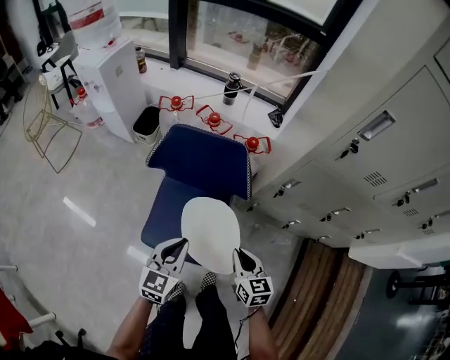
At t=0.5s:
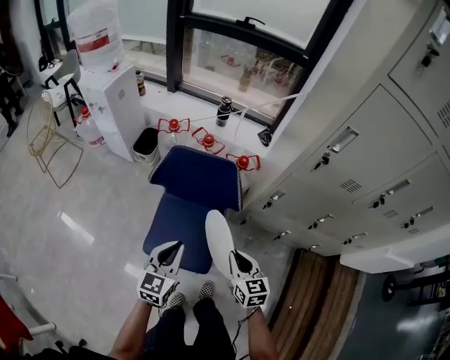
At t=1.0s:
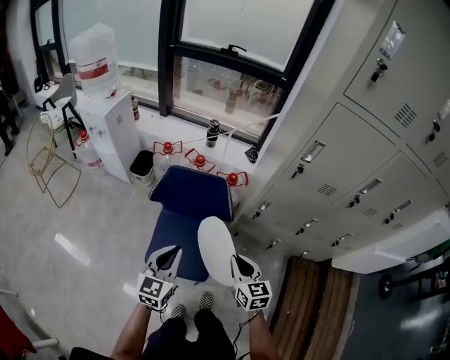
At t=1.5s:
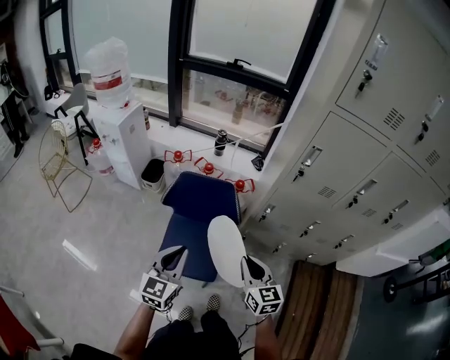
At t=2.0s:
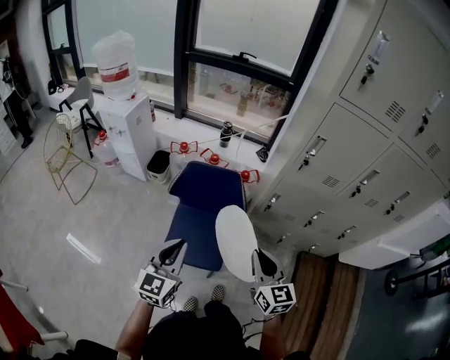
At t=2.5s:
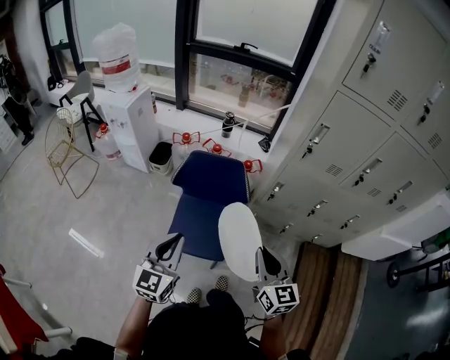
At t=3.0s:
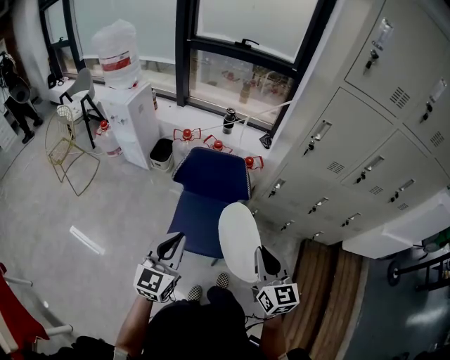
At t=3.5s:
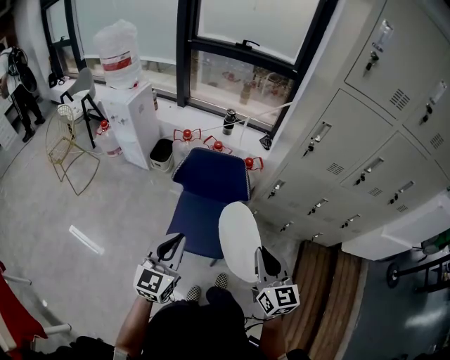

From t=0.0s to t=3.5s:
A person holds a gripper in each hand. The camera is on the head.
From t=0.0s to t=2.0s: The right gripper moves upward, roughly 35 cm, and changes its angle by roughly 20 degrees. The left gripper heads upward and backward, covering roughly 30 cm.
From t=2.0s to t=3.5s: The grippers move only a little.

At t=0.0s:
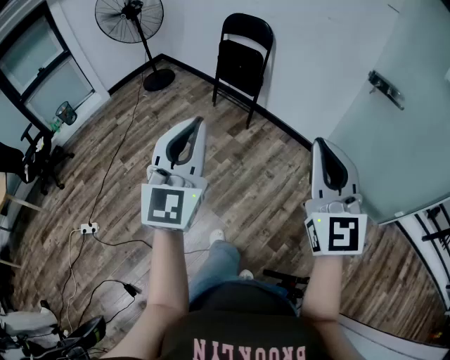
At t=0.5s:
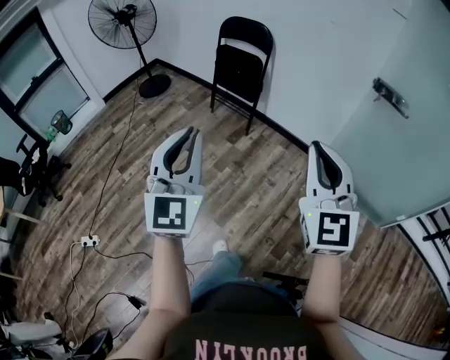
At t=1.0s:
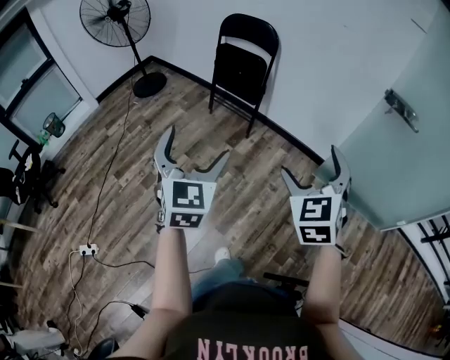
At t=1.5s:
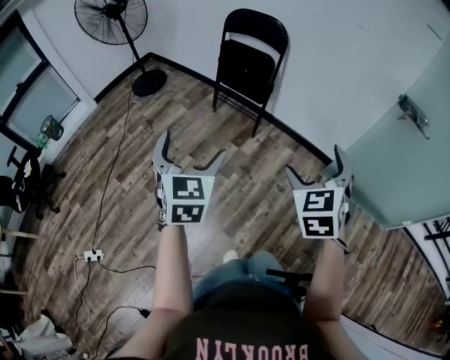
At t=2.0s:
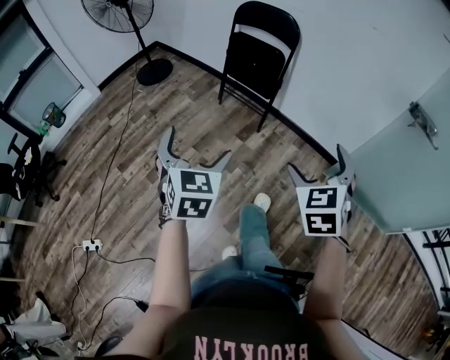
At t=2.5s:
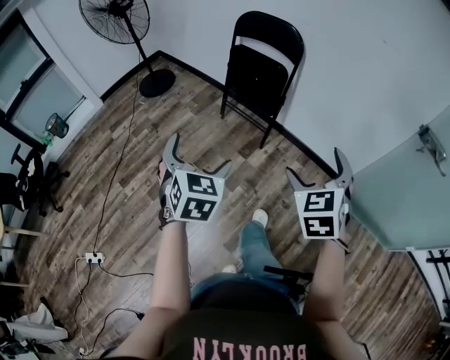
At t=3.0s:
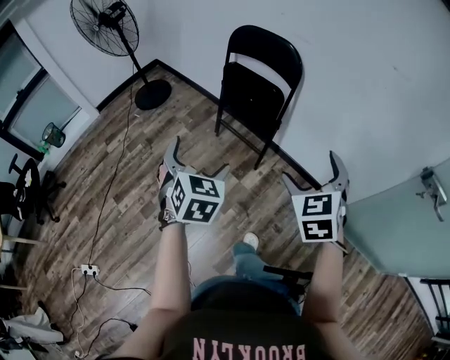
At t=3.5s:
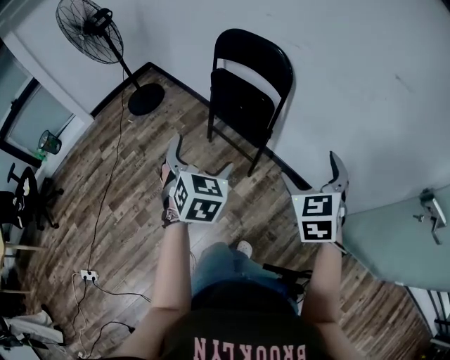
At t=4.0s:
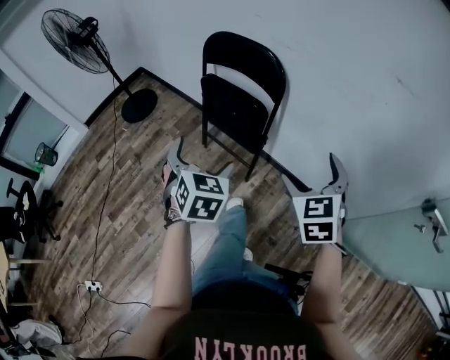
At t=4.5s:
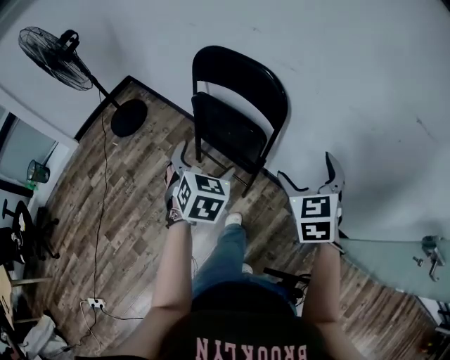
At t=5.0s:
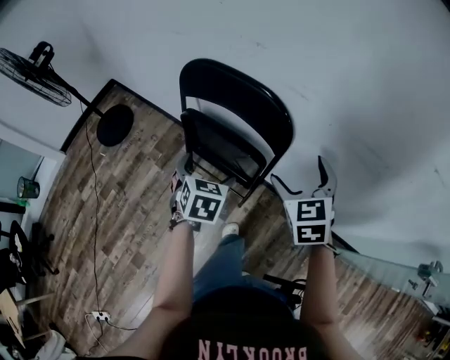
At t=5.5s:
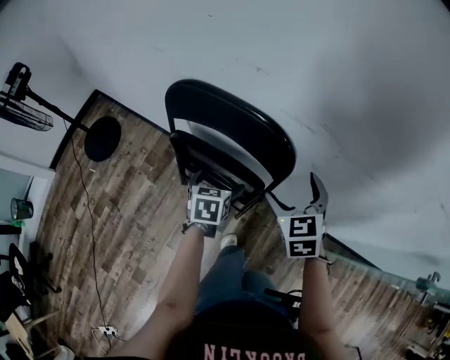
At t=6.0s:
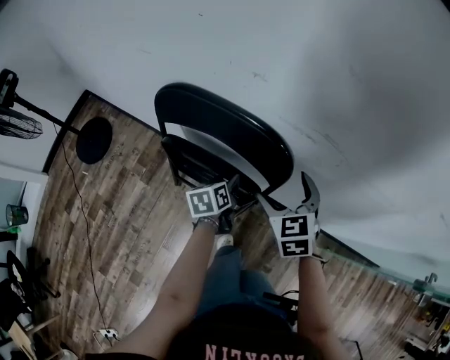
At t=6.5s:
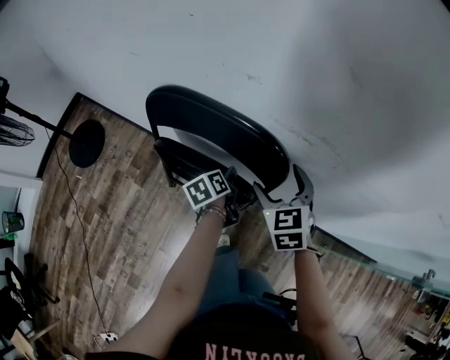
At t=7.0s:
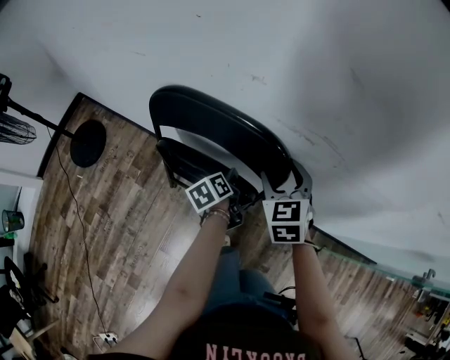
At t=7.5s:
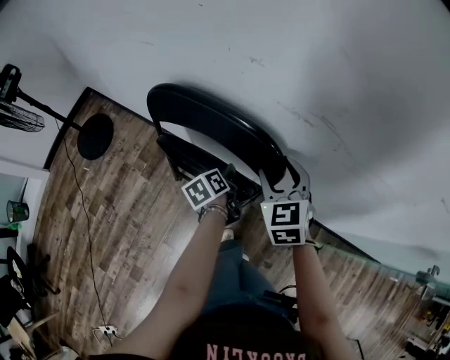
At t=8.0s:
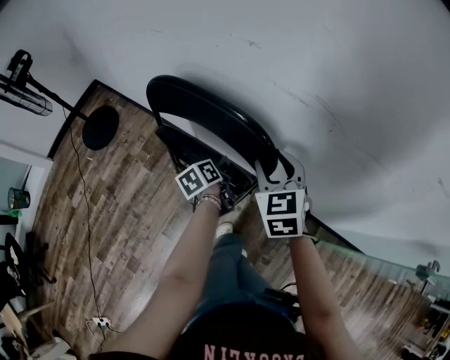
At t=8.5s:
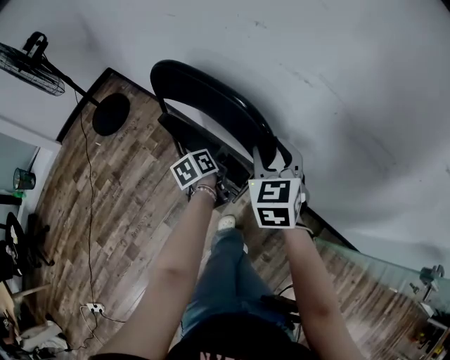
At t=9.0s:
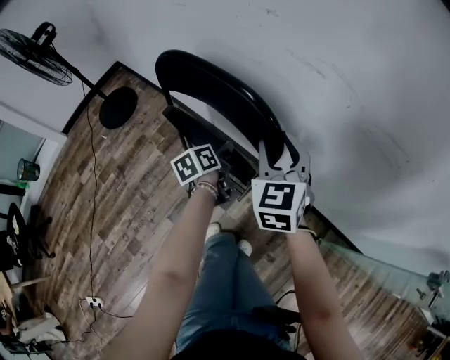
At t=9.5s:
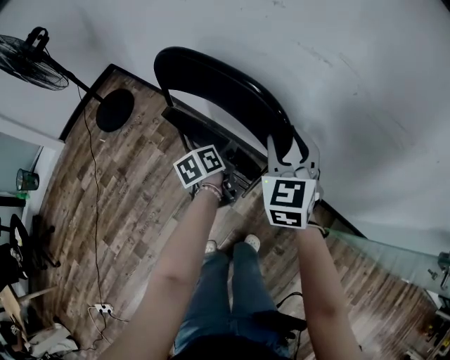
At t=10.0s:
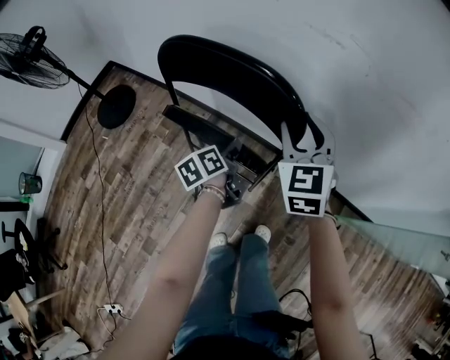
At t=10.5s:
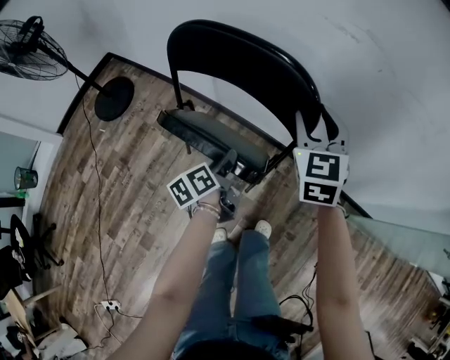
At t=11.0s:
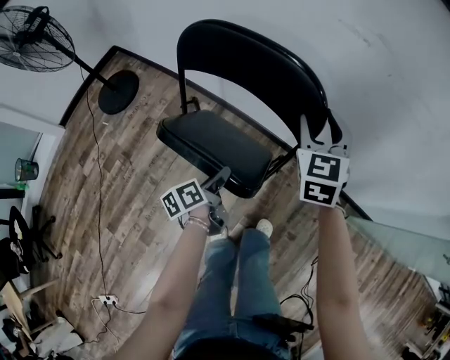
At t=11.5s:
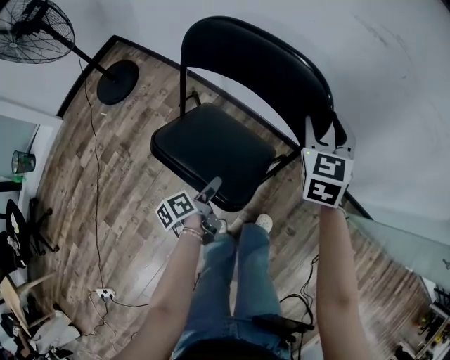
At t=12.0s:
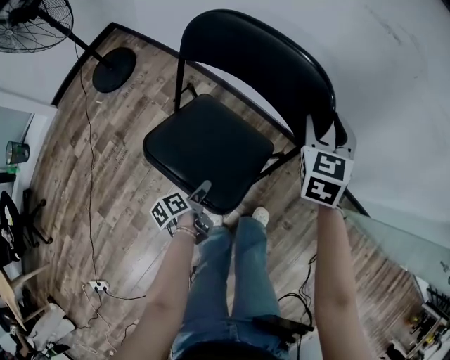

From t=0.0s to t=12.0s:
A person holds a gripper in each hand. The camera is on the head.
From t=0.0s to t=2.0s: The two grippers go about 35 cm forward, downward and to the left. The left gripper angles its fingers downward, by roughly 40 degrees, and opens its fingers. The right gripper tips its fingers downward by approximately 40 degrees, and opens.
From t=2.0s to t=4.0s: The pair of grippers is taken forward, roughly 50 cm.
From t=4.0s to t=6.0s: The right gripper shifts approximately 35 cm forward. The left gripper shifts some 40 cm forward and downward, rolls counterclockwise, seen from behind, by approximately 50 degrees, and closes.
From t=6.0s to t=8.0s: The left gripper shifts by approximately 5 cm, and swivels some 20 degrees. The right gripper shifts by roughly 5 cm, and closes its fingers.
From t=8.0s to t=10.0s: The left gripper goes about 10 cm backward. The right gripper travels backward by some 5 cm.
From t=10.0s to t=12.0s: The right gripper heads downward, covering about 10 cm. Meanwhile the left gripper heads backward and downward, covering some 30 cm, and changes its angle by some 30 degrees.

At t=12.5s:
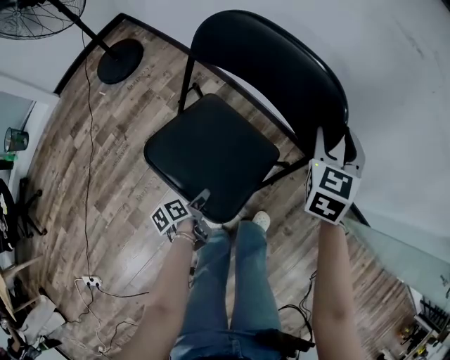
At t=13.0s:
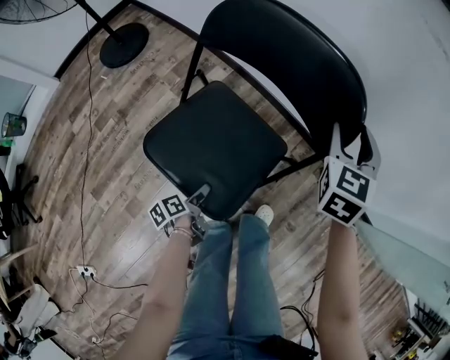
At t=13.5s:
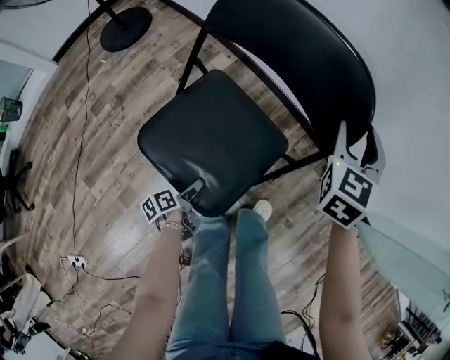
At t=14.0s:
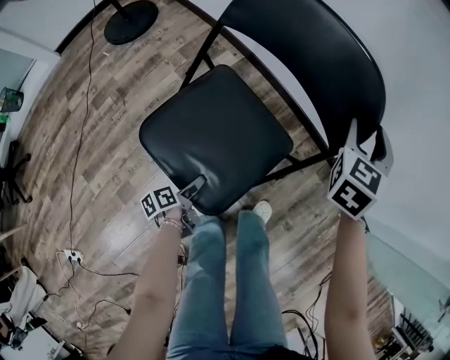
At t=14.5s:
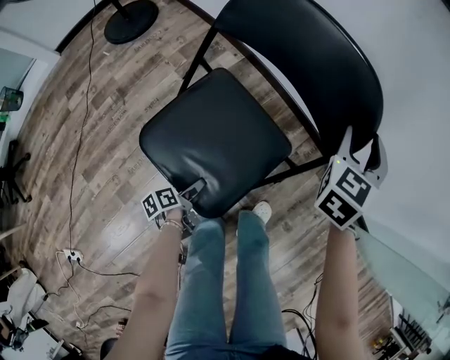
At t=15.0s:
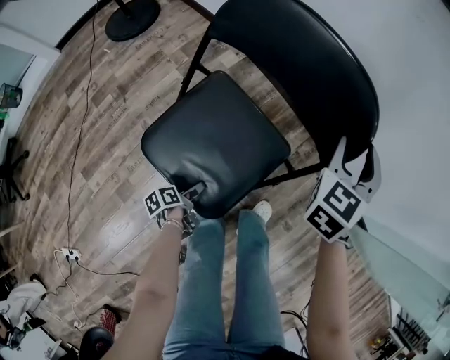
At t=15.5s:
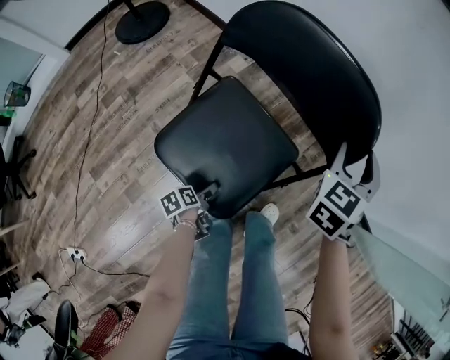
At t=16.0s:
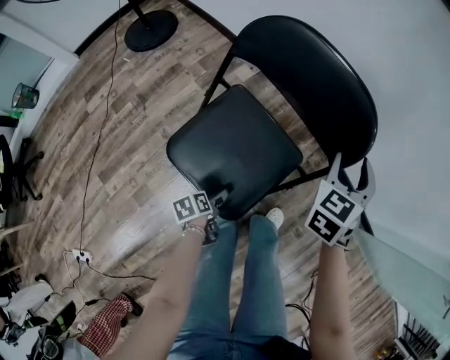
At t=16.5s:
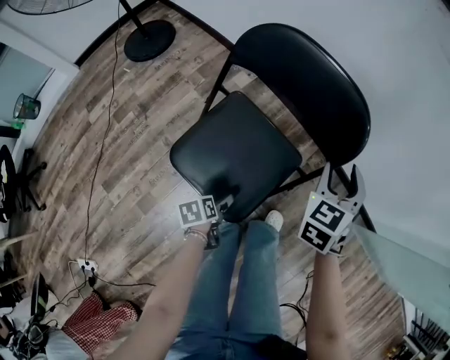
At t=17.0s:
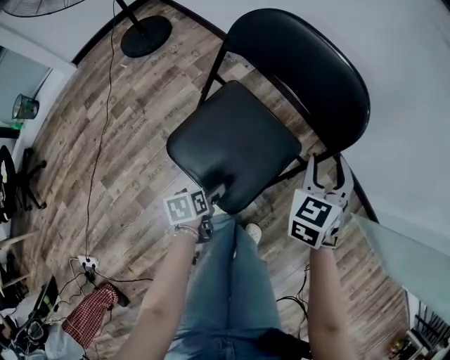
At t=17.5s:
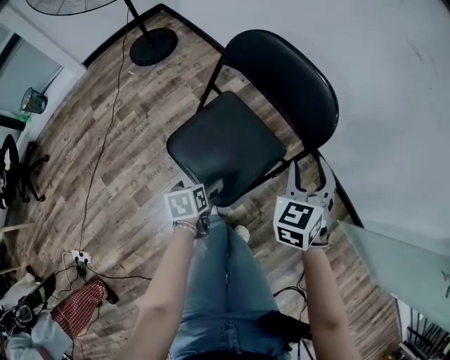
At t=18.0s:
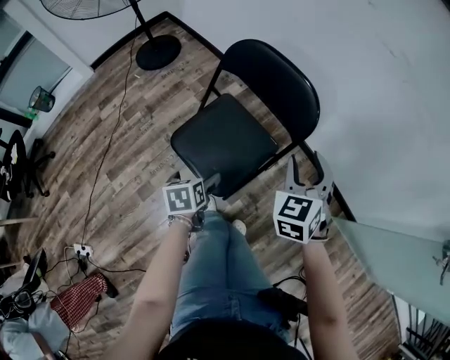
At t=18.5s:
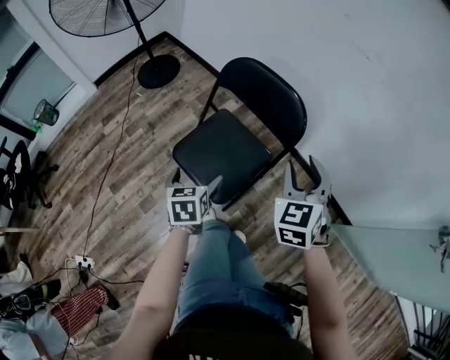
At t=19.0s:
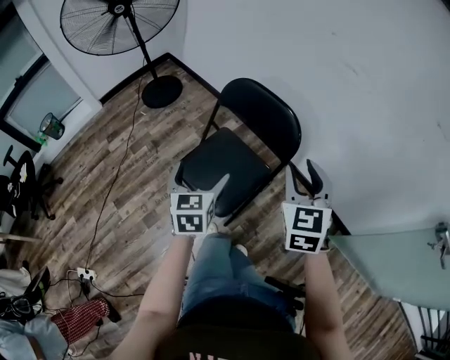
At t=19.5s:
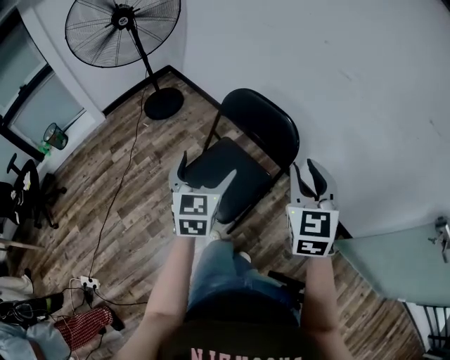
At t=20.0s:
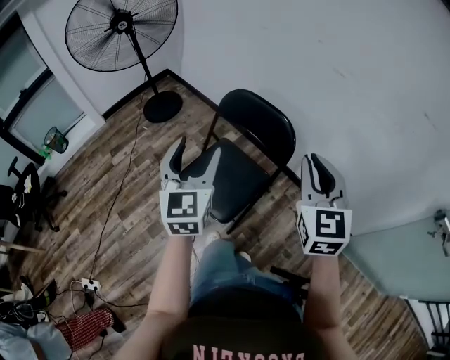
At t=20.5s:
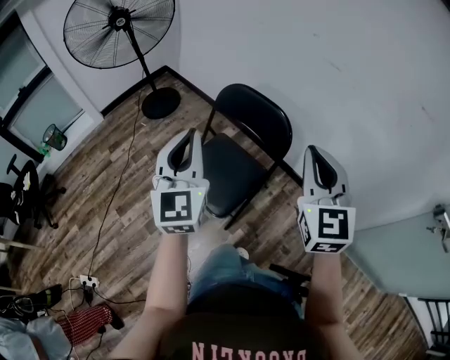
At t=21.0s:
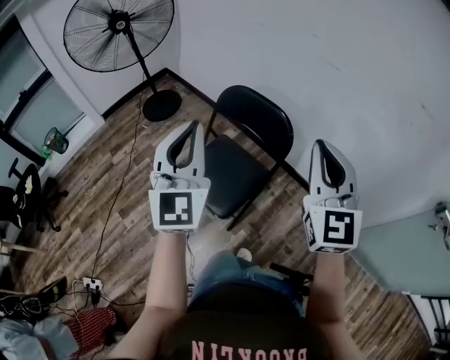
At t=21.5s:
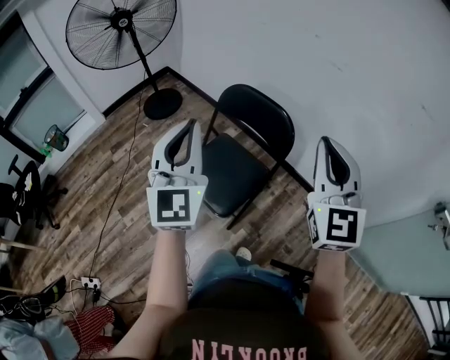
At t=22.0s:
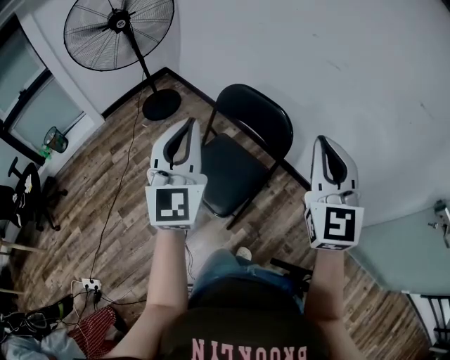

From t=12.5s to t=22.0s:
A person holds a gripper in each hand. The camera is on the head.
From t=12.5s to t=14.5s: The right gripper heads downward, covering about 5 cm, while the left gripper is displaced downward and backward by roughly 15 cm.
From t=14.5s to t=16.5s: The left gripper travels upward by roughly 10 cm, and swivels about 30 degrees. Meanwhile the right gripper heads backward, covering approximately 15 cm.
From t=16.5s to t=18.0s: The left gripper heads upward, covering about 20 cm, and swivels roughly 20 degrees. The right gripper travels upward and backward by approximately 15 cm.
From t=18.0s to t=20.0s: The left gripper shifts approximately 35 cm upward, angles its fingers upward, by some 50 degrees, and closes. Meanwhile the right gripper moves upward and backward, roughly 25 cm, and rotates some 30 degrees.
From t=20.0s to t=22.0s: The two grippers go roughly 5 cm upward. The left gripper closes up.

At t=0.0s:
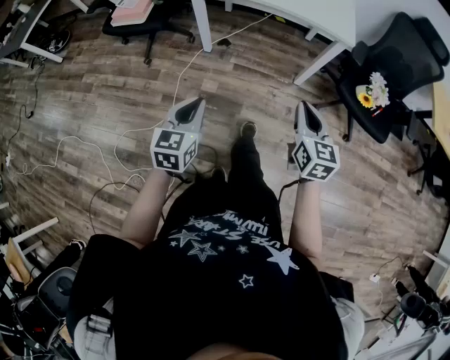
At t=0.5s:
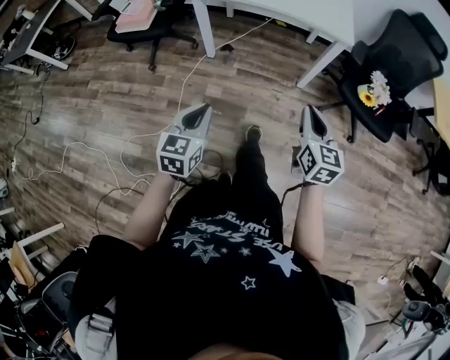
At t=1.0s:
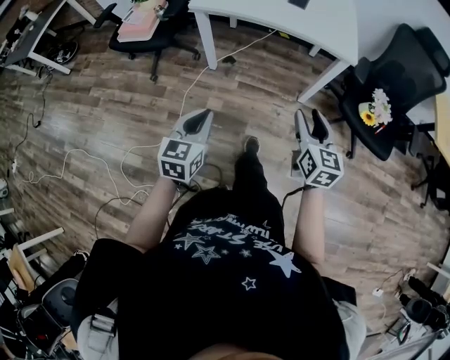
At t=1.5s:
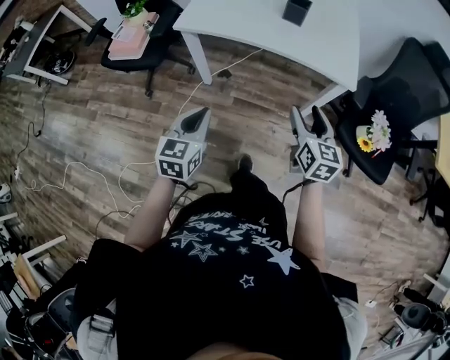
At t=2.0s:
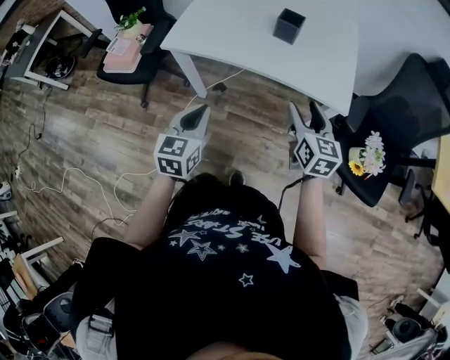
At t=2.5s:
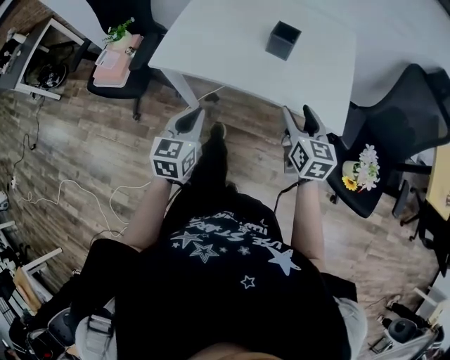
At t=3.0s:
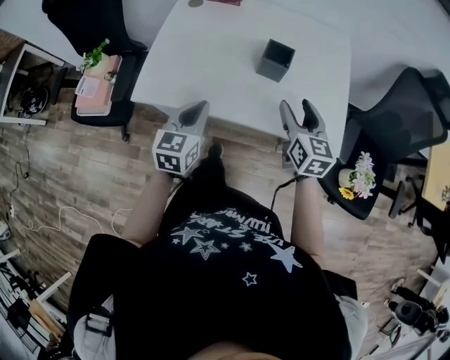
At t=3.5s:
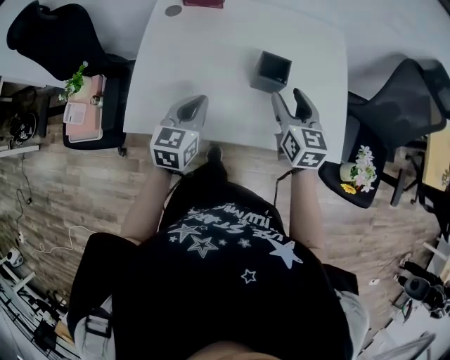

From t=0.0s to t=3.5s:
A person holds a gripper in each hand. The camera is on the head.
From t=0.0s to t=2.0s: The two grippers go about 35 cm forward. The right gripper opens.
From t=2.0s to t=3.5s: Both grippers move forward, roughly 30 cm.
